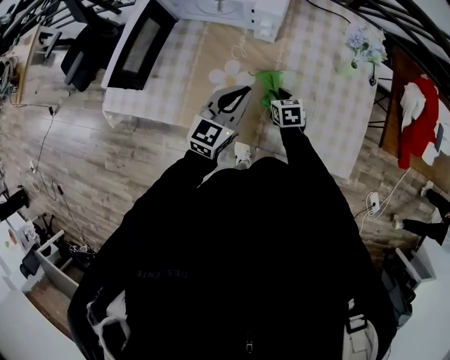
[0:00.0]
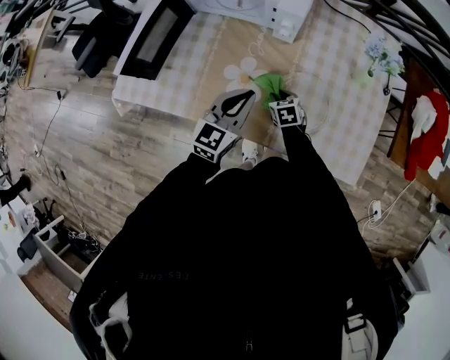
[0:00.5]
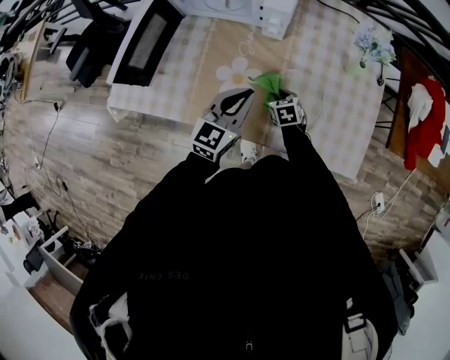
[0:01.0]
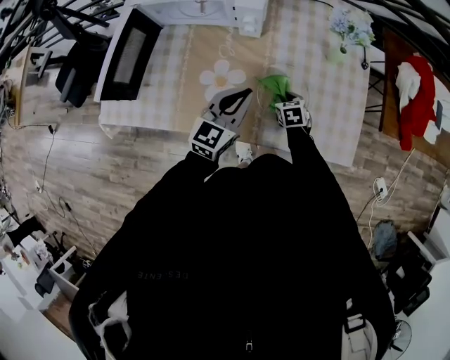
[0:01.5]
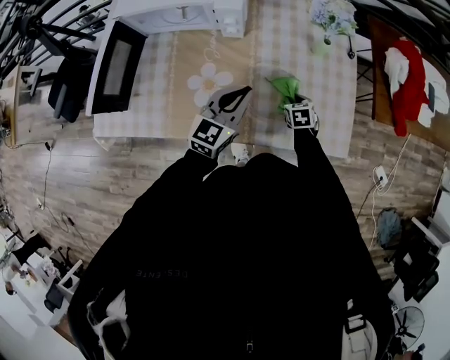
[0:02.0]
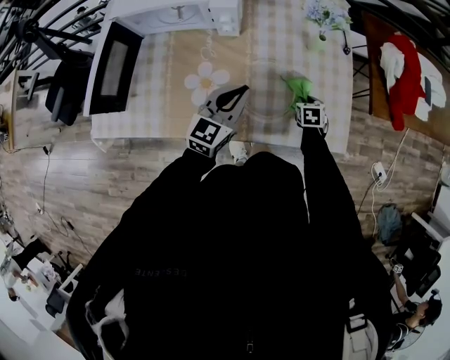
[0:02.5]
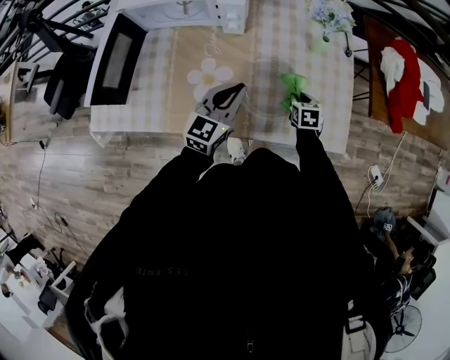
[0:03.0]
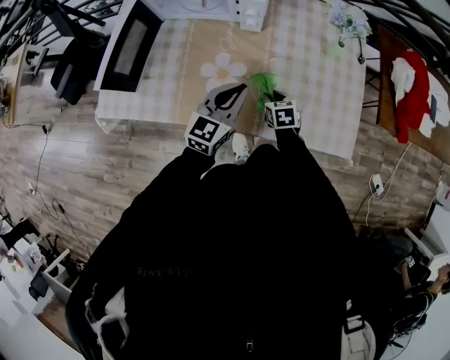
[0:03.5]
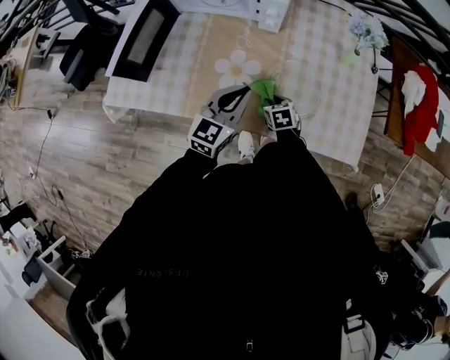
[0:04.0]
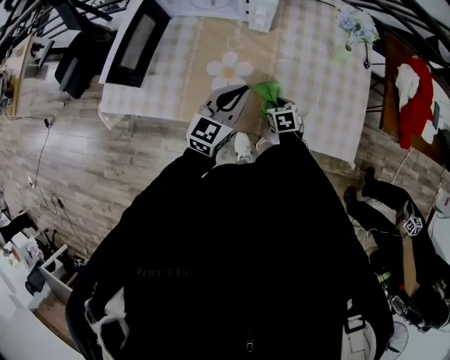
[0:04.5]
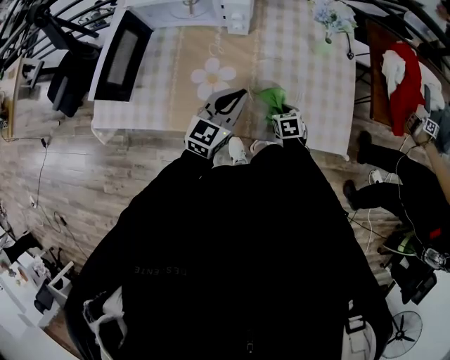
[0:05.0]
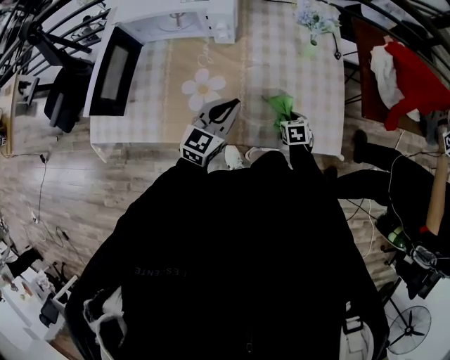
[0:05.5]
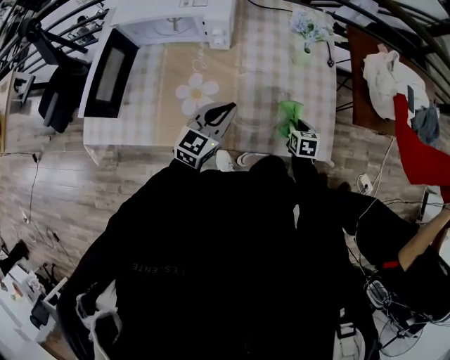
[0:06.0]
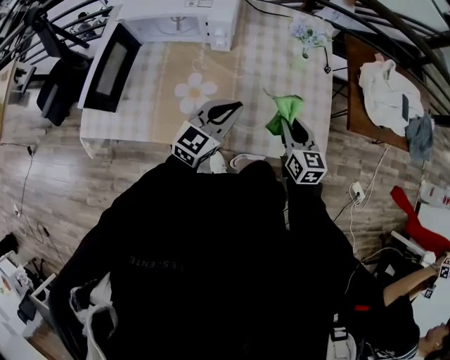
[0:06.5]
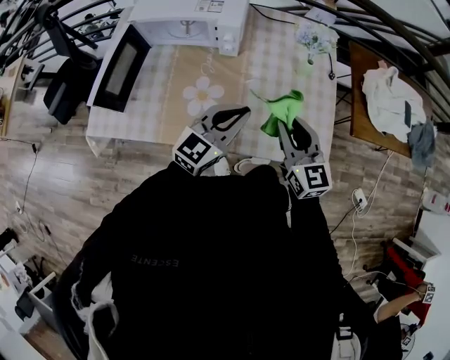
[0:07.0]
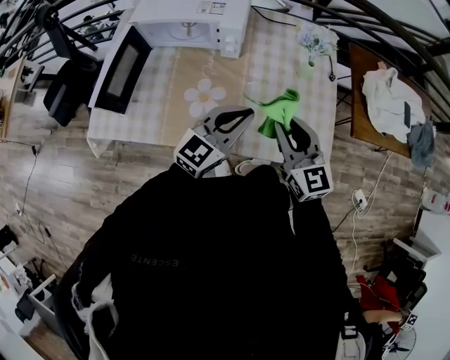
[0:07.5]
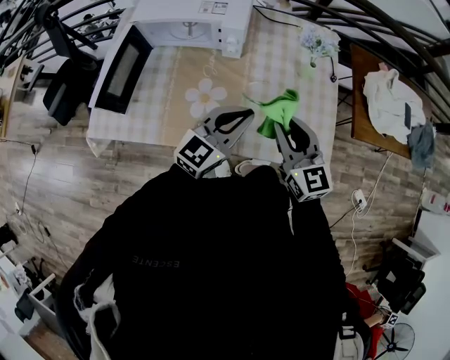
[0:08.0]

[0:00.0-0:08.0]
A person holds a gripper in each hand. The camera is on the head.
0.0 to 2.0 s: The right gripper shifts roughly 15 cm to the right. Meanwhile the left gripper travels to the right by about 5 cm.
2.0 to 4.0 s: The right gripper is displaced to the left and backward by about 20 cm. The left gripper moves to the left and backward, some 10 cm.
4.0 to 6.0 s: The left gripper is displaced to the right by roughly 10 cm. Meanwhile the right gripper heads to the right, covering some 25 cm, and rotates roughly 30 degrees.
6.0 to 8.0 s: The right gripper travels upward and to the left by some 35 cm, and tips its fingers upward by about 40 degrees. The left gripper shifts some 10 cm upward.

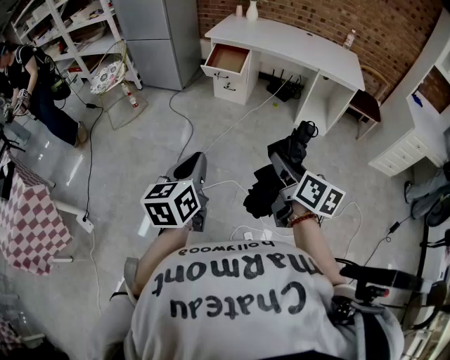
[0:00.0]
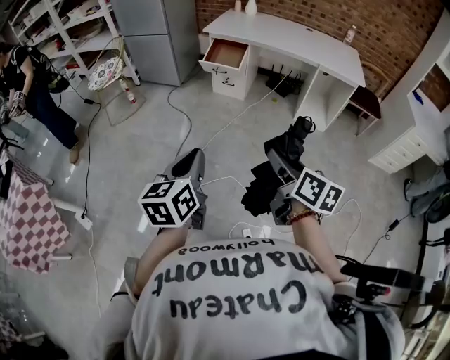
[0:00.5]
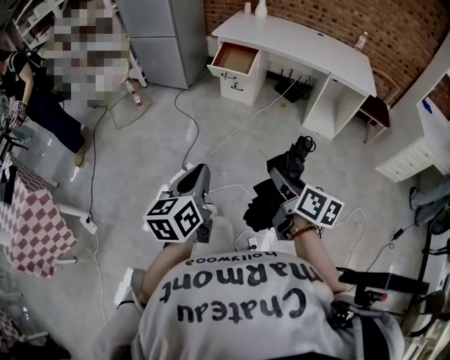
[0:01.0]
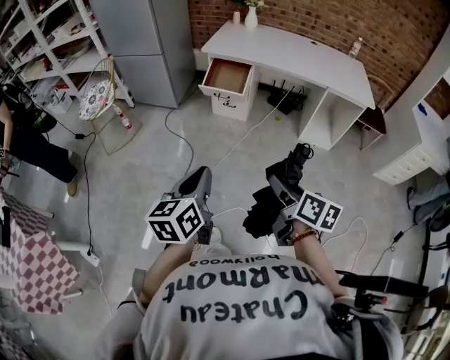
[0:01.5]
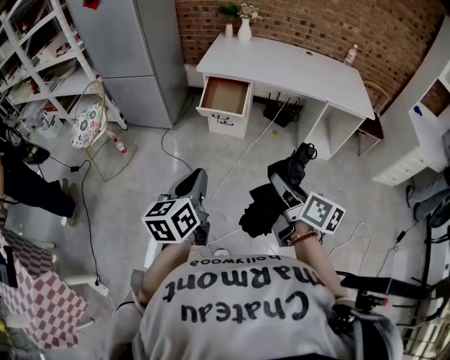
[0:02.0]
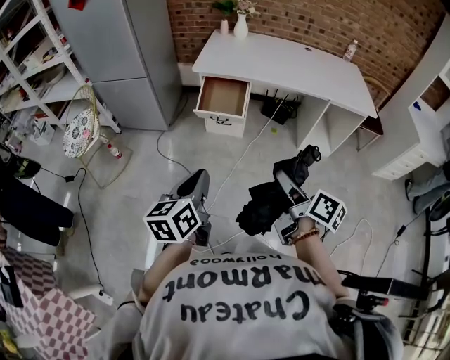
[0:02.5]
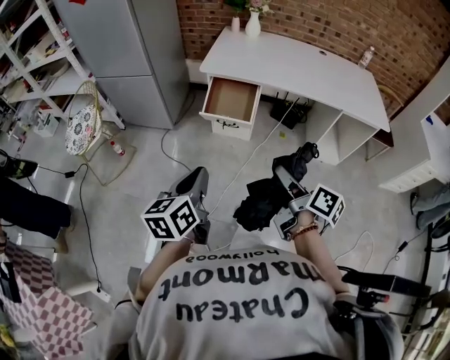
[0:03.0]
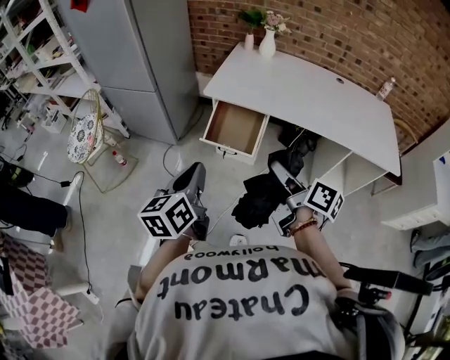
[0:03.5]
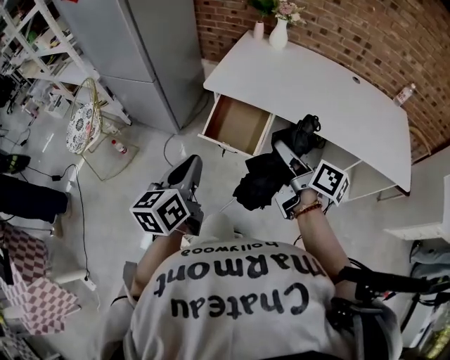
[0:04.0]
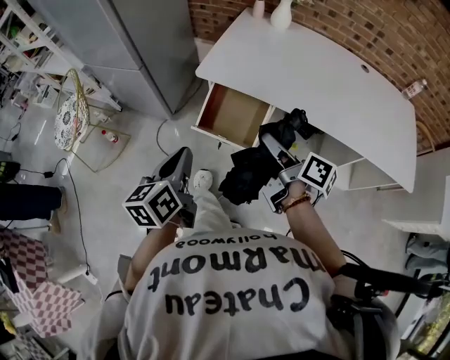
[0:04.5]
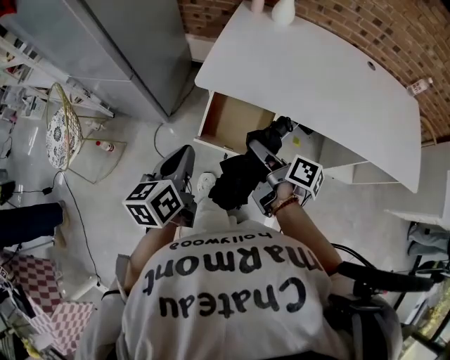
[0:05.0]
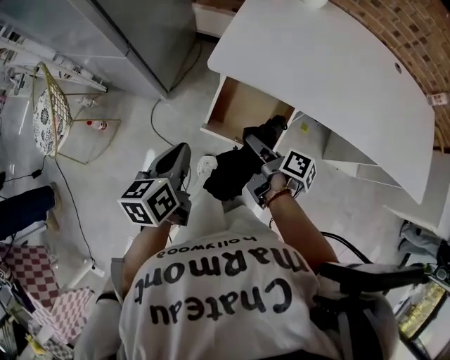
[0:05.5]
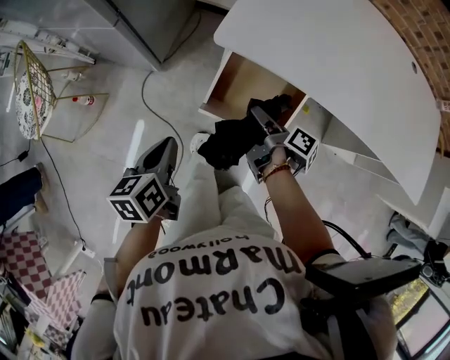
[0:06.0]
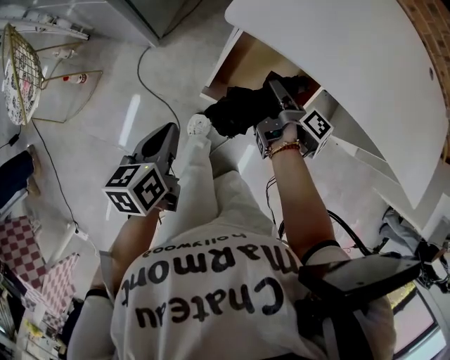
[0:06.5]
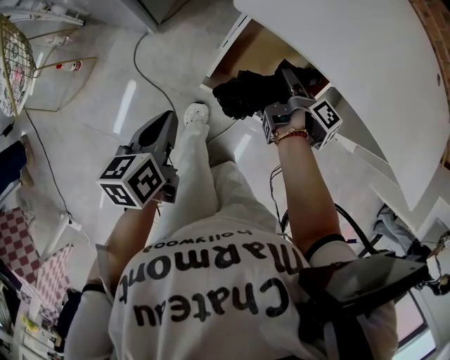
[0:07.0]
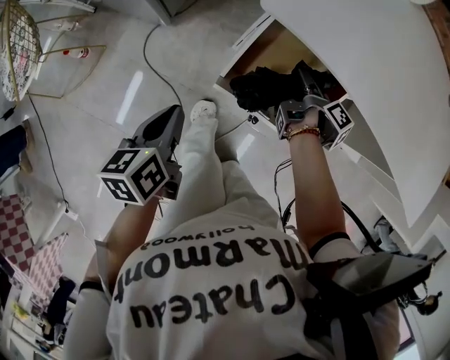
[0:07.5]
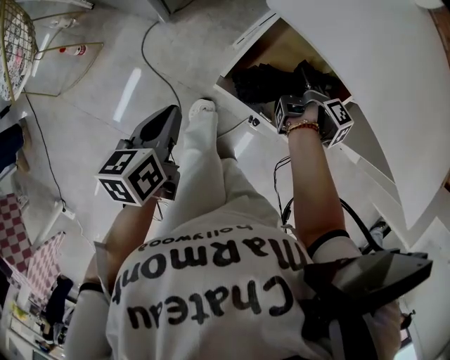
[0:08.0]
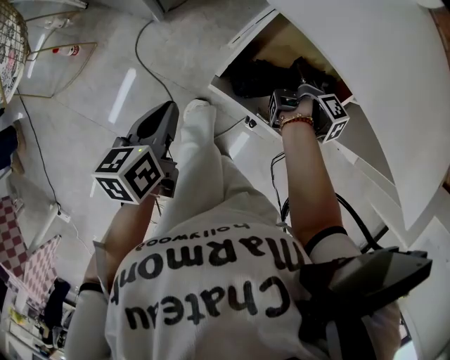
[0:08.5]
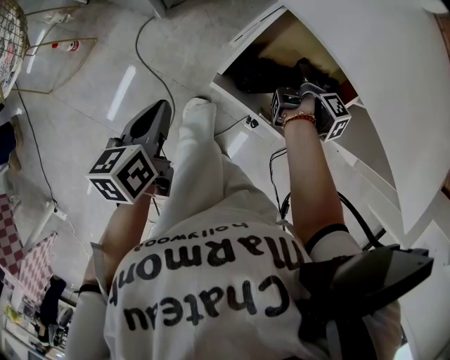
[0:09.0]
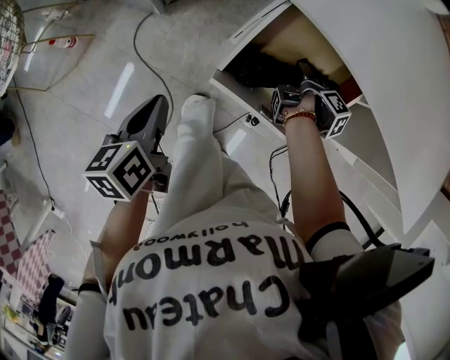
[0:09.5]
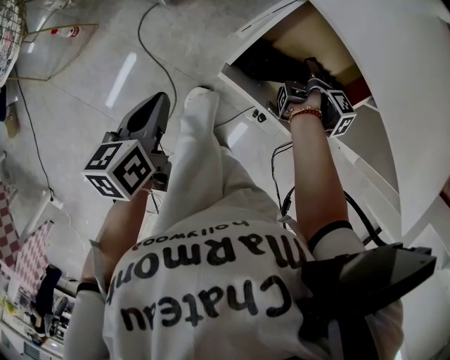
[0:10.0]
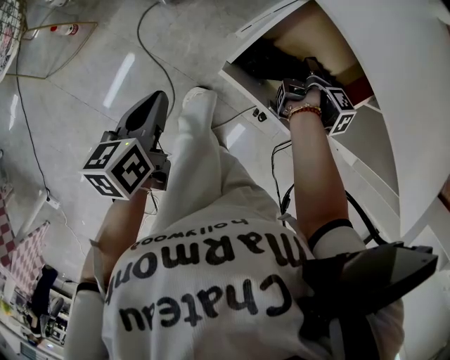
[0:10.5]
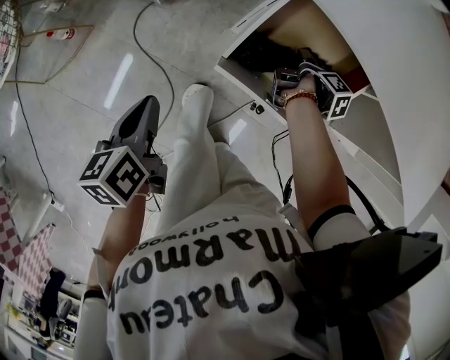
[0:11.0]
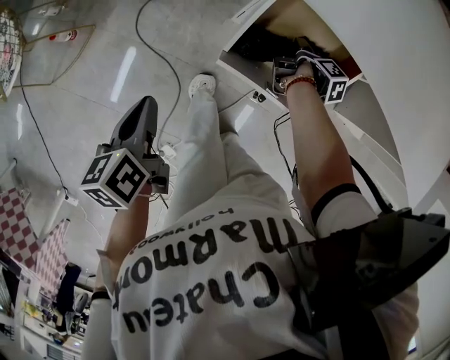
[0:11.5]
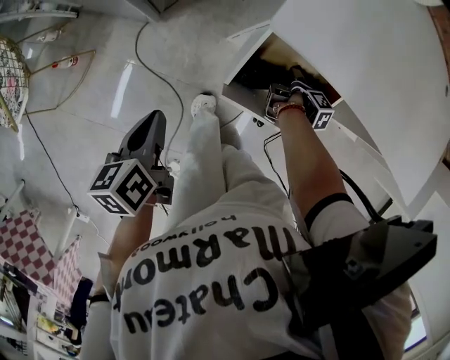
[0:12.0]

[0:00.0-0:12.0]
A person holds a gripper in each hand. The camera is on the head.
0.0 to 2.0 s: Both grippers move forward, roughly 30 cm.
2.0 to 4.0 s: Both grippers move forward, about 40 cm.
4.0 to 6.0 s: The left gripper shifts about 35 cm downward, forward and to the left, and swivels about 30 degrees. The right gripper travels downward and forward by some 35 cm, and turns by approximately 40 degrees.
6.0 to 8.0 s: The right gripper travels downward and forward by about 15 cm, and turns by approximately 20 degrees, while the left gripper is displaced downward by about 10 cm.
8.0 to 10.0 s: The right gripper heads downward, covering roughly 5 cm.
10.0 to 12.0 s: The left gripper heads upward, covering about 5 cm.

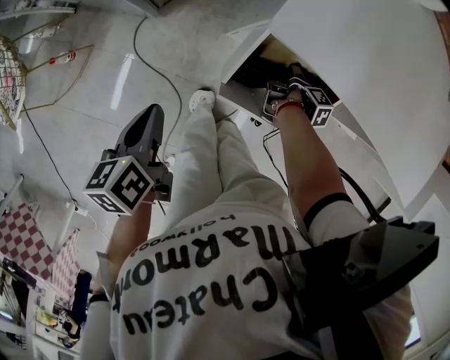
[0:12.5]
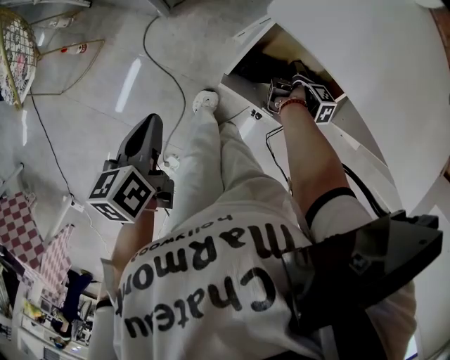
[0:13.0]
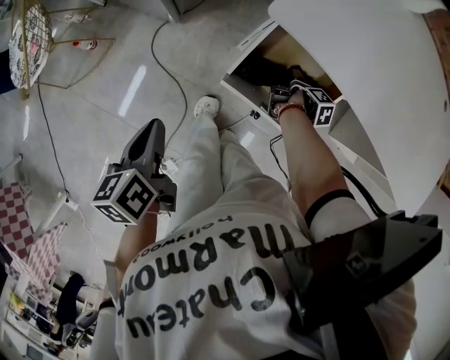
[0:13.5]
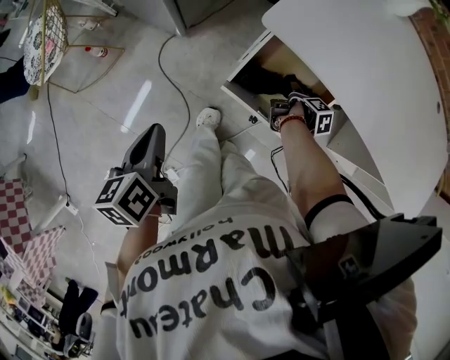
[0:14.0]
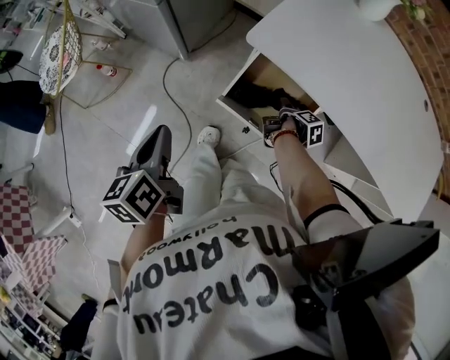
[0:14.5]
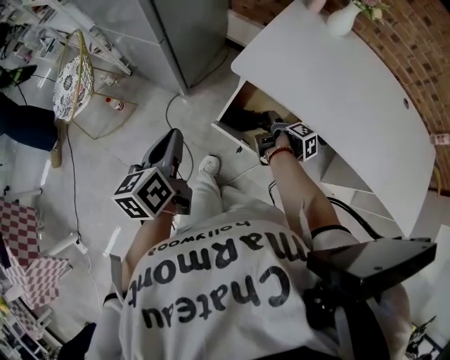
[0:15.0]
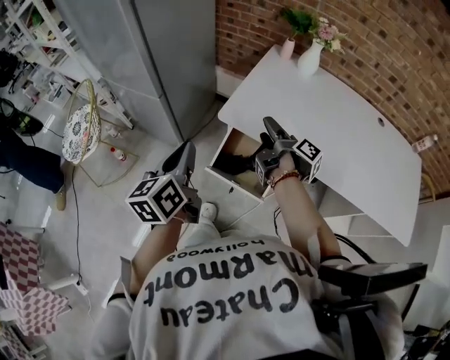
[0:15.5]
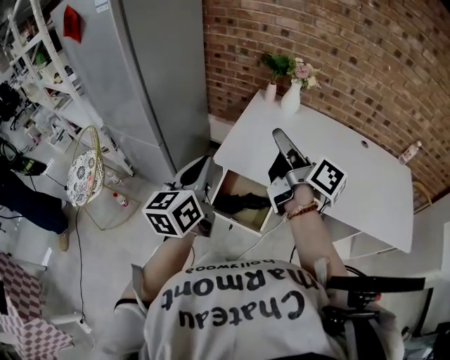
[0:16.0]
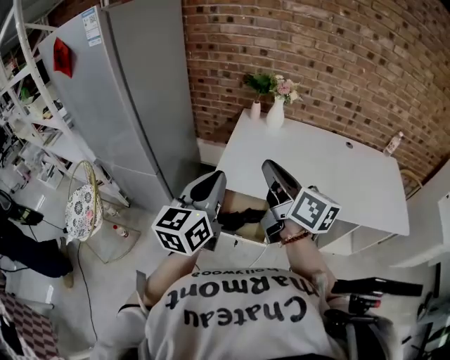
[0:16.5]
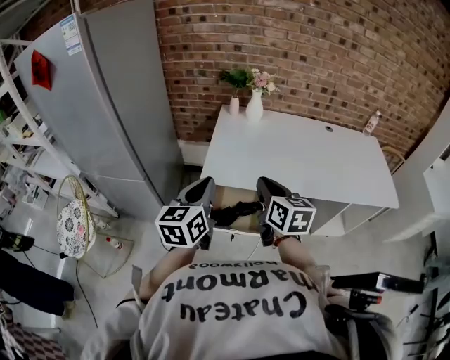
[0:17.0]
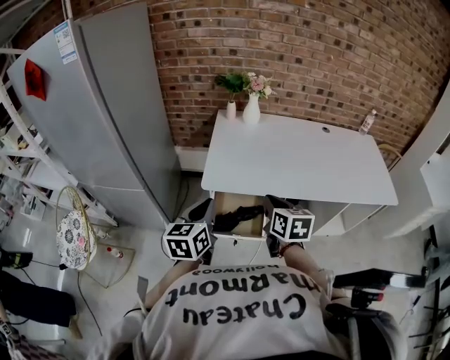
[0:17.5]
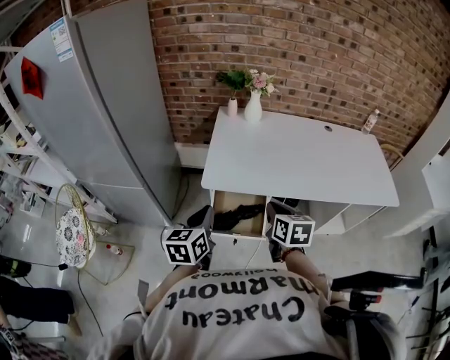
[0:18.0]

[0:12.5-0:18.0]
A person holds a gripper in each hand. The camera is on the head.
12.5 to 14.5 s: The left gripper goes some 15 cm upward and backward, and turns by about 20 degrees. The right gripper shifts approximately 10 cm upward.
14.5 to 16.0 s: The left gripper moves upward and to the right, some 30 cm, and swivels some 40 degrees. The right gripper is displaced upward by roughly 50 cm, and tilts its fingers approximately 60 degrees upward.
16.0 to 18.0 s: The right gripper shifts about 20 cm downward and backward, tips its fingers downward by some 40 degrees, and closes up; the left gripper shifts some 10 cm downward, and rotates some 20 degrees.

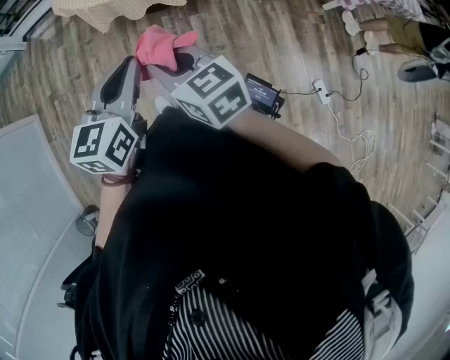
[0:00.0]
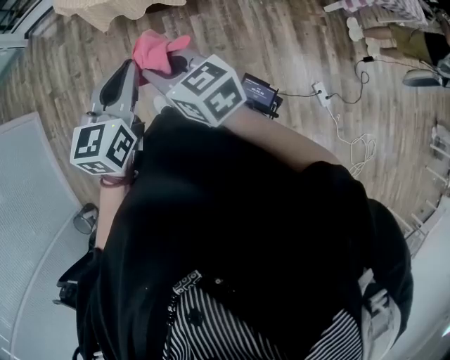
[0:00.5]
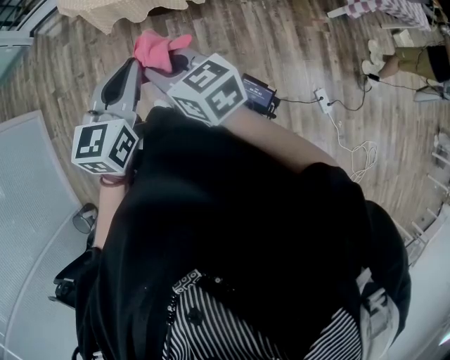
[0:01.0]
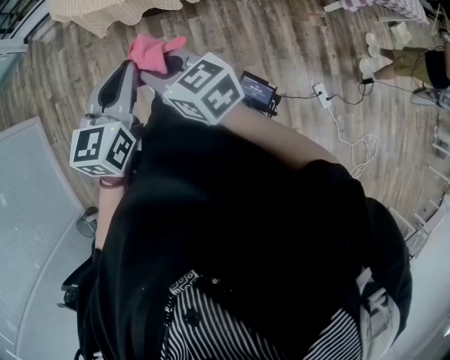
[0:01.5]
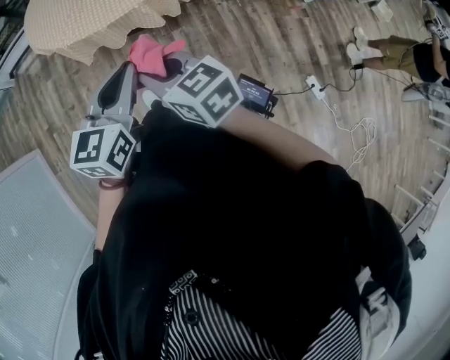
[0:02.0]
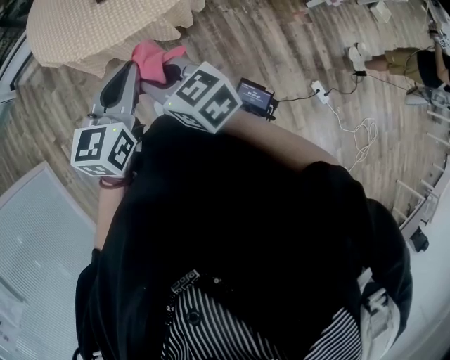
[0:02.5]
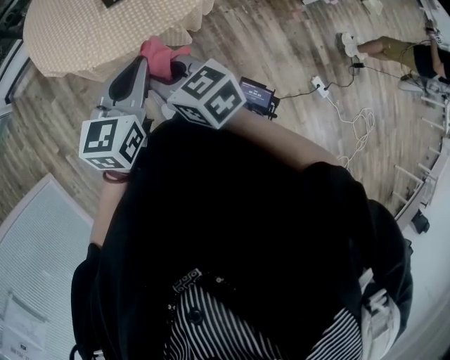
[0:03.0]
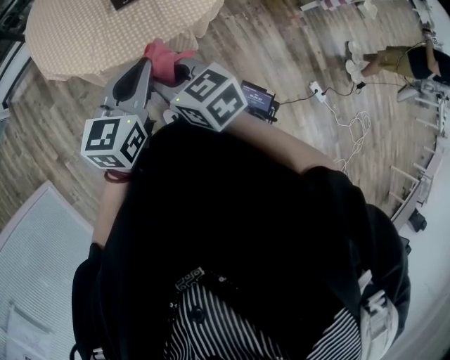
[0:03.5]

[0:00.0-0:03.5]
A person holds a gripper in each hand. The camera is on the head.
0.0 to 2.0 s: The grippers make only small movements.
2.0 to 3.5 s: Both grippers move forward and to the left, about 30 cm.
